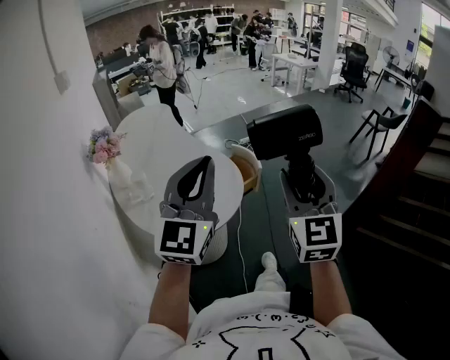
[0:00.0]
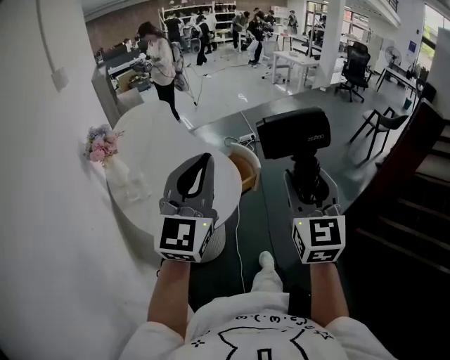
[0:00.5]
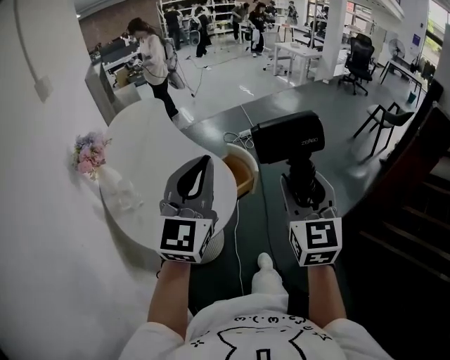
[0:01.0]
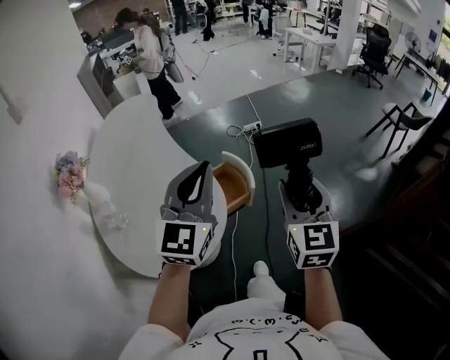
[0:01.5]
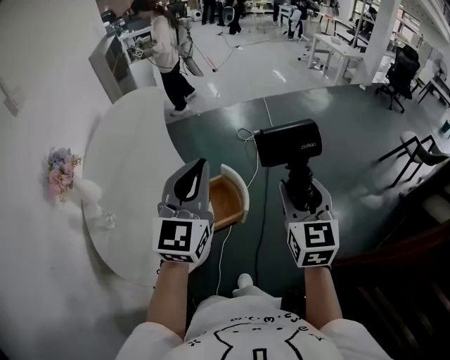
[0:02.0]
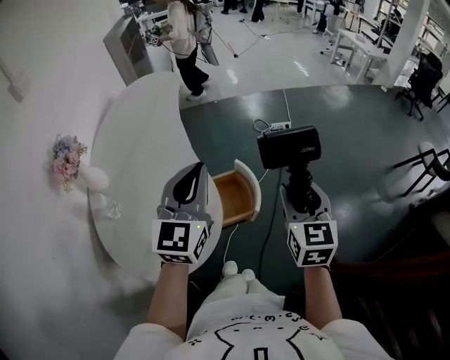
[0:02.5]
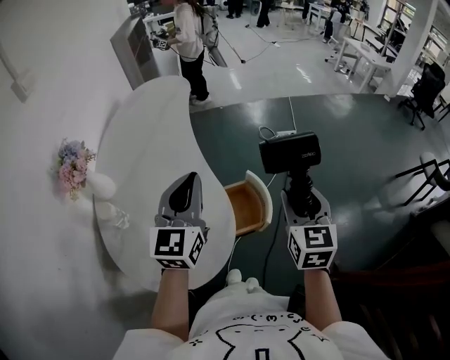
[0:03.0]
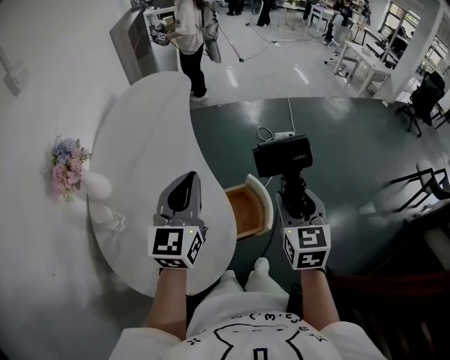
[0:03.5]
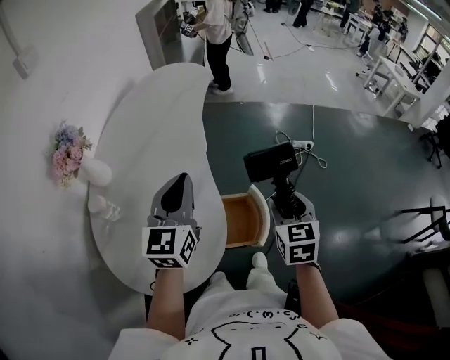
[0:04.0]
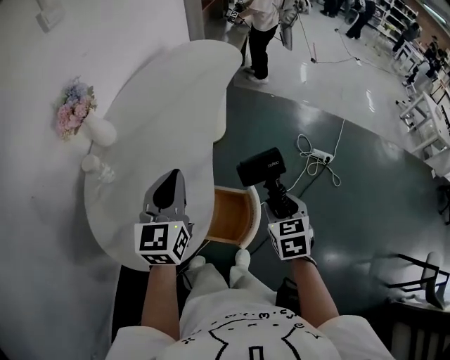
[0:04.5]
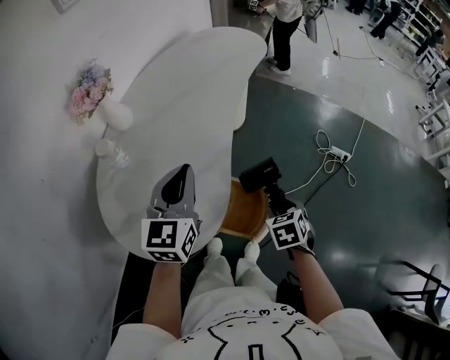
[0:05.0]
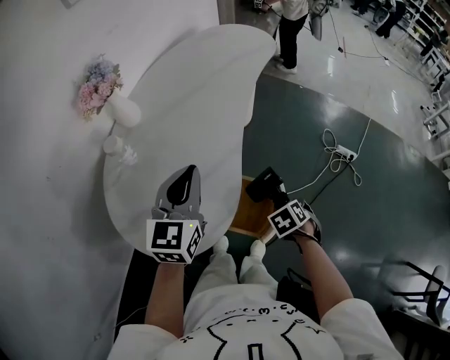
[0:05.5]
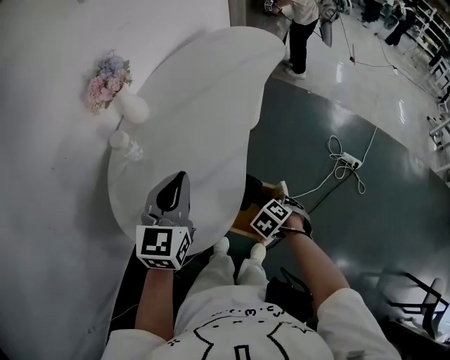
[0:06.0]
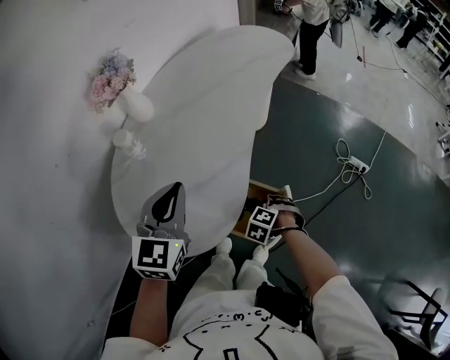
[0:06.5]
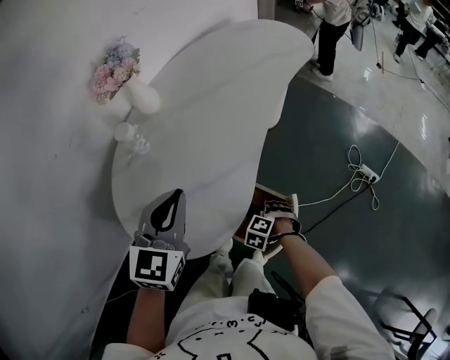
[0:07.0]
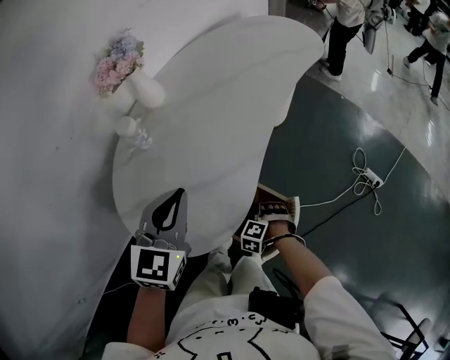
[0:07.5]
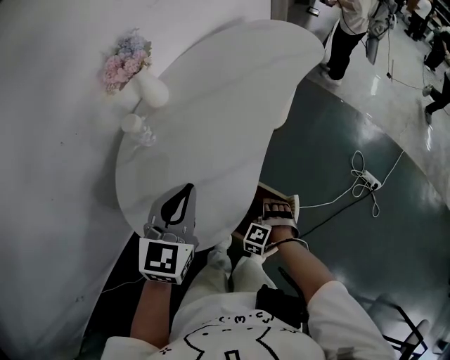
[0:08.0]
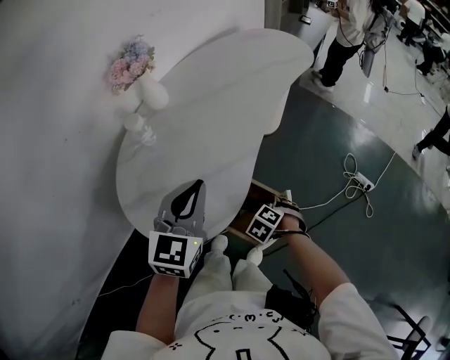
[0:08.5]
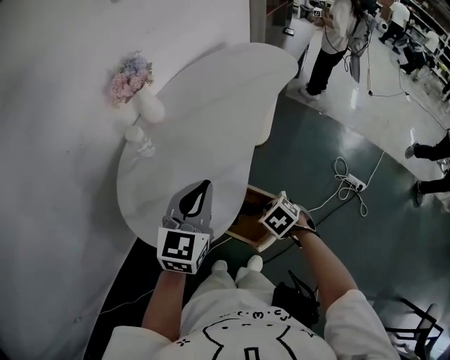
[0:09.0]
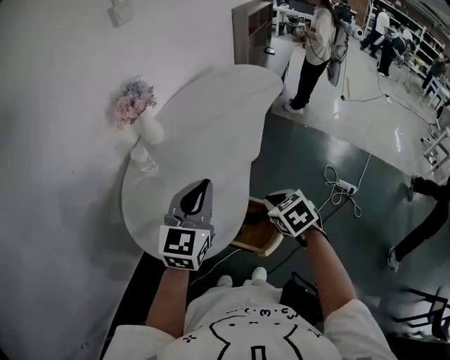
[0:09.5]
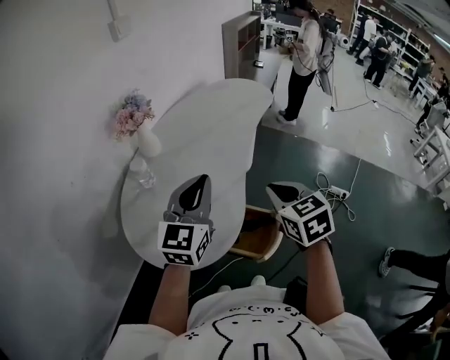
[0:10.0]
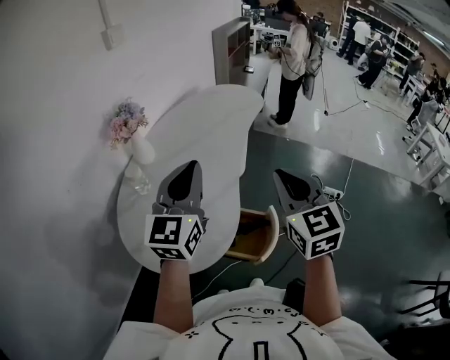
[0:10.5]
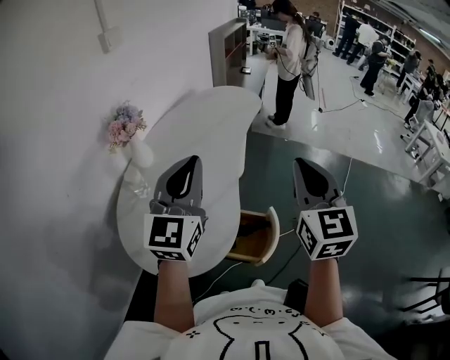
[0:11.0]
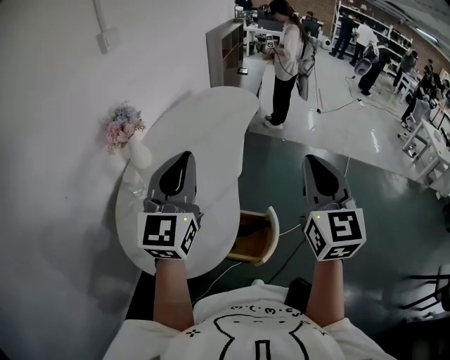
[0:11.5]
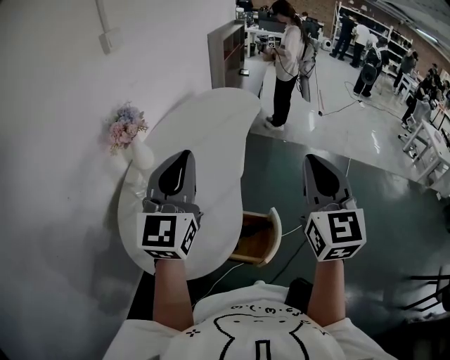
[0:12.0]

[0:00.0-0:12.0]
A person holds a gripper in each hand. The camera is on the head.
0:00.0 to 0:02.0: Both grippers travel together forward, roughly 35 cm. The right gripper swivels about 20 degrees.
0:02.0 to 0:04.0: The right gripper moves forward, downward and to the left, about 25 cm, and changes its angle by roughly 30 degrees, while the left gripper is displaced to the left, forward and downward by roughly 20 cm, and swivels some 30 degrees.
0:04.0 to 0:06.0: The right gripper moves downward, some 25 cm, and tips its fingers downward by roughly 50 degrees. Meanwhile the left gripper moves roughly 10 cm, and turns by roughly 30 degrees.
0:06.0 to 0:08.0: The right gripper goes some 10 cm downward, and twists approximately 40 degrees counterclockwise, seen from behind.
0:08.0 to 0:10.0: The left gripper is displaced upward by roughly 10 cm, and rotates some 20 degrees. Meanwhile the right gripper travels upward by some 40 cm, rotates around the line of its fingers by some 70 degrees, clockwise from behind, and closes.
0:10.0 to 0:12.0: The left gripper heads upward, covering about 10 cm. Meanwhile the right gripper shifts some 15 cm upward and to the right, and points its fingers roughly 30 degrees further upward.

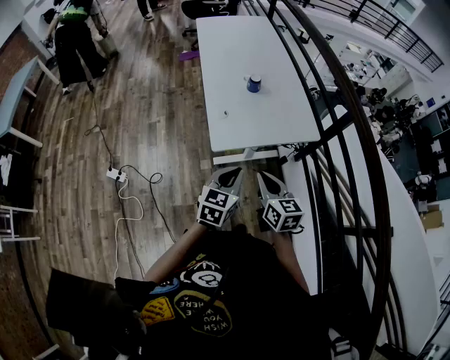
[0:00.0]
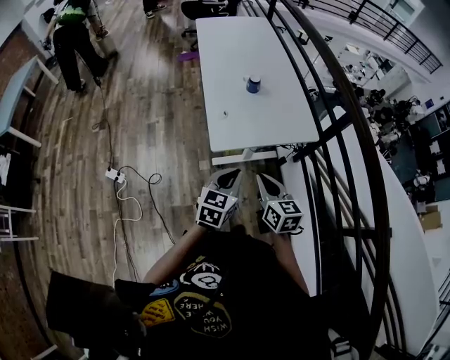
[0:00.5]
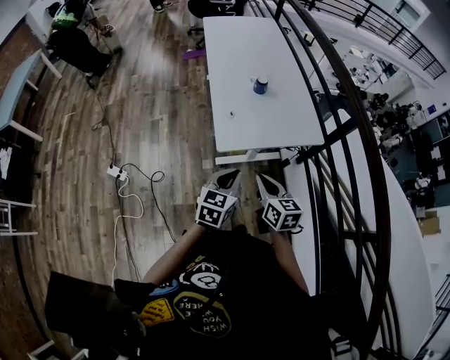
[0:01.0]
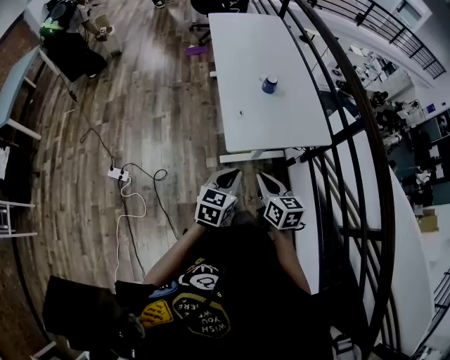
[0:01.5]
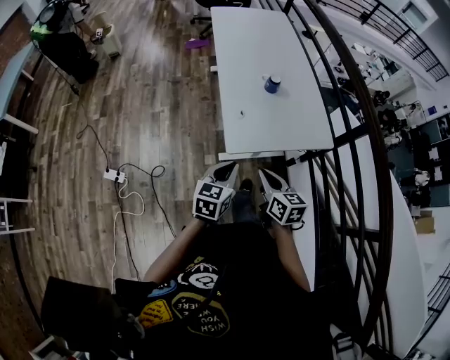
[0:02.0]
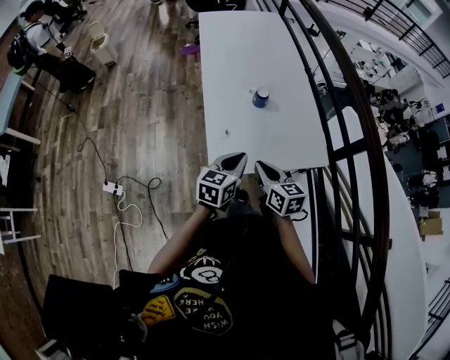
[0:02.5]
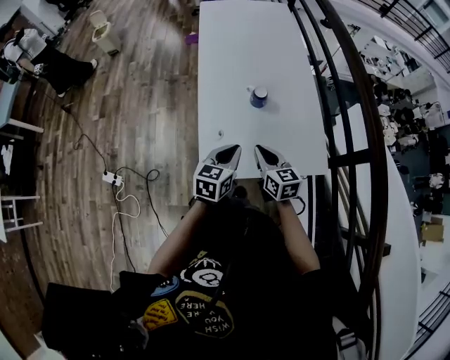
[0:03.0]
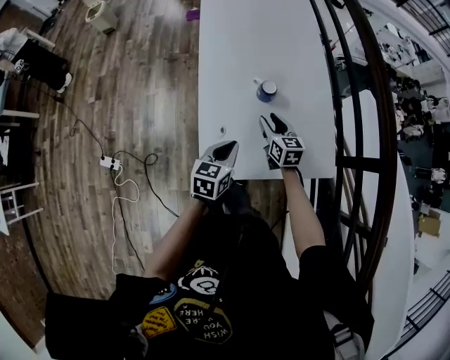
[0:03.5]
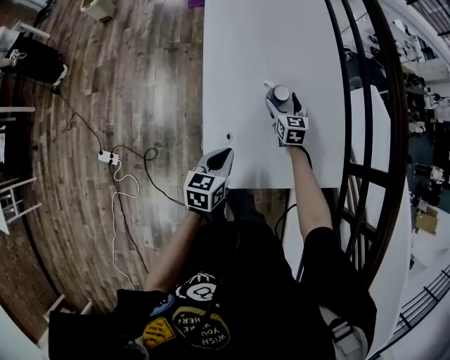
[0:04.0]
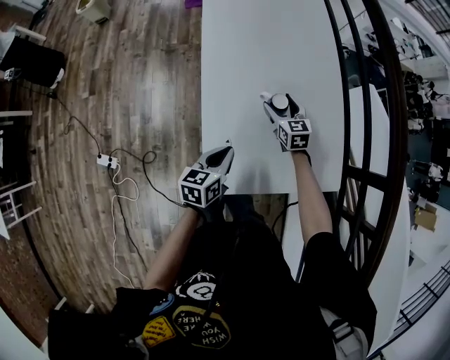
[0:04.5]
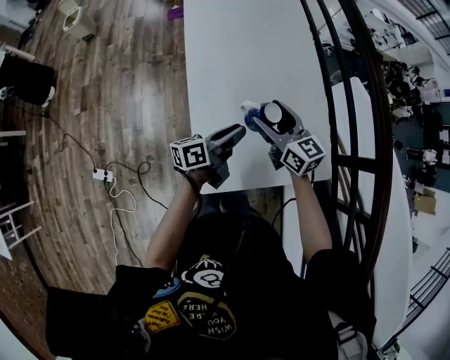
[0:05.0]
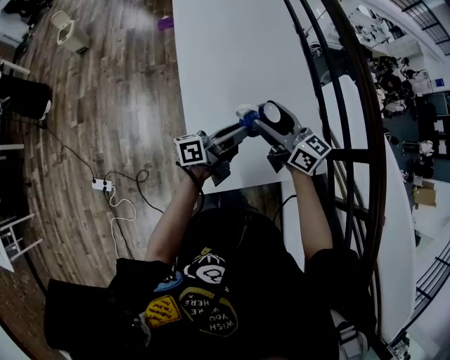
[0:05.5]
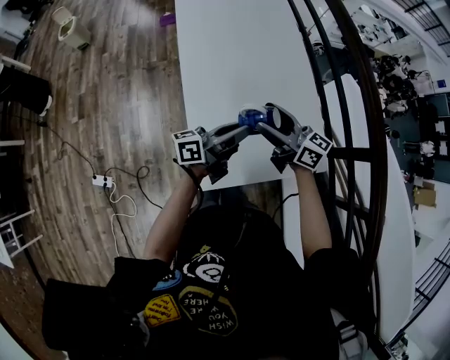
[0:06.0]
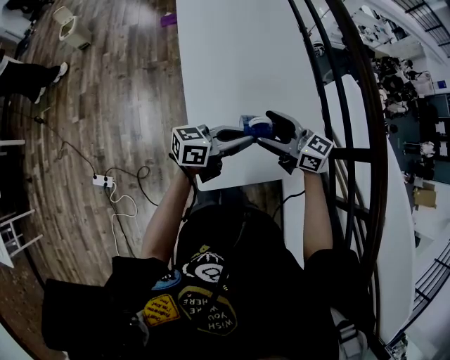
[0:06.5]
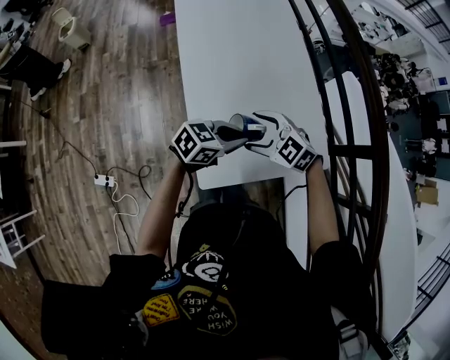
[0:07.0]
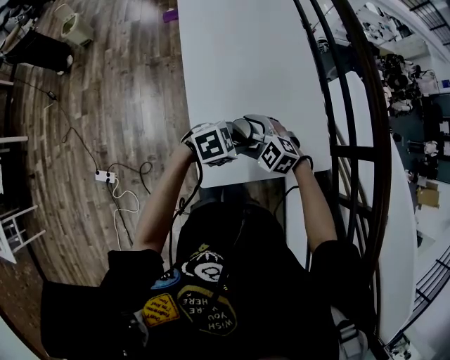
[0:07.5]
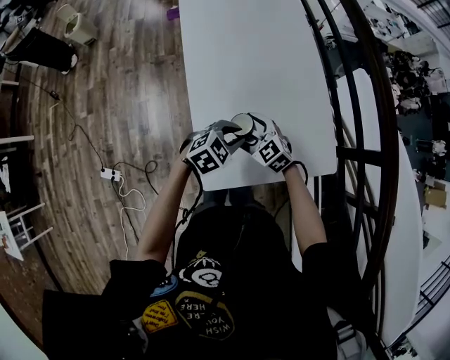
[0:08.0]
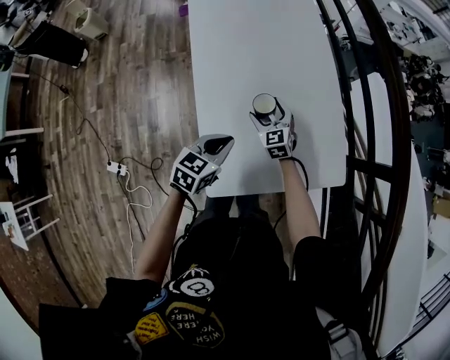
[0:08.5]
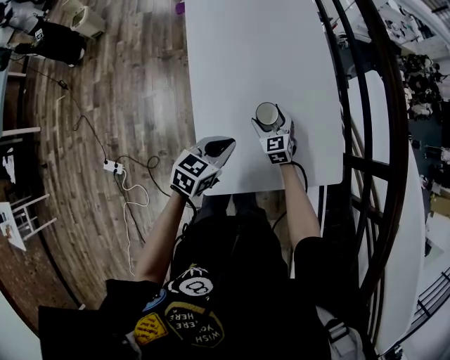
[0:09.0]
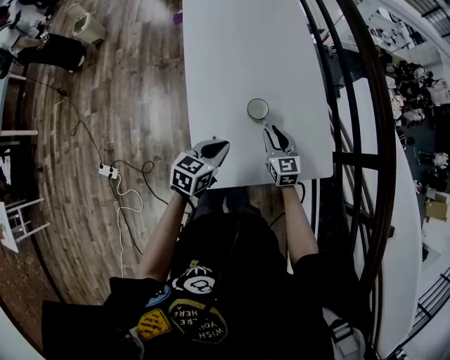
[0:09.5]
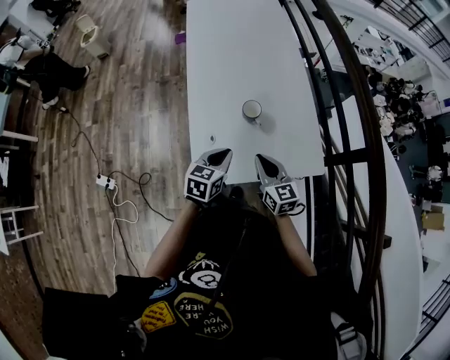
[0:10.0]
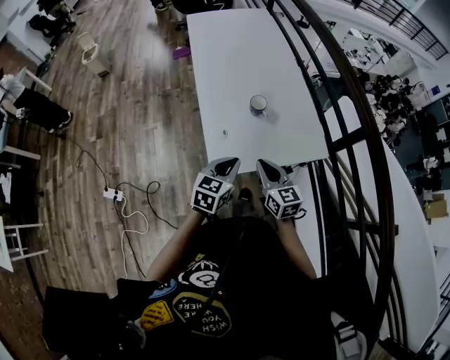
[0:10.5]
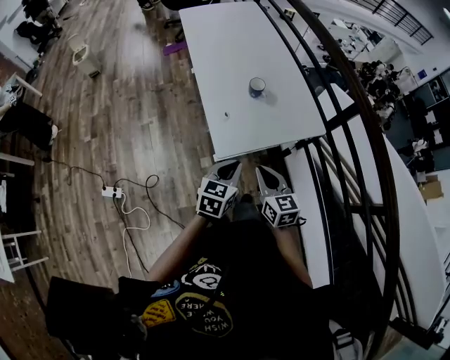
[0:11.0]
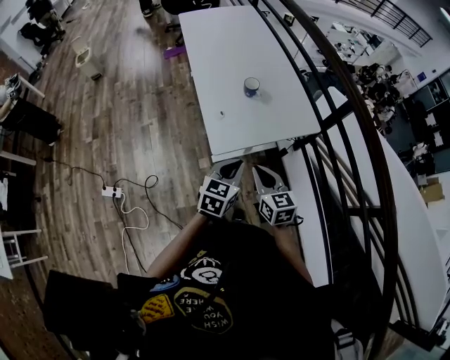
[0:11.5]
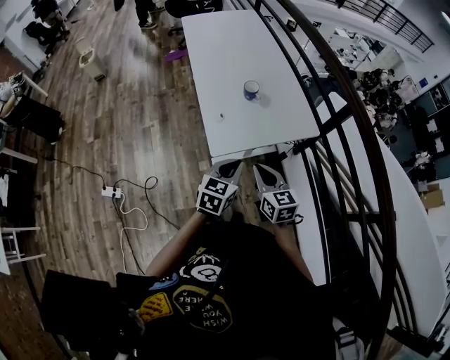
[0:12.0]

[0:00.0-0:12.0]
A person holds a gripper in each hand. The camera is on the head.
0:00.0 to 0:02.0: Both grippers move to the left and forward, about 10 cm.
0:02.0 to 0:04.0: The right gripper moves forward, roughly 50 cm, turns by roughly 20 degrees, and opens. Meanwhile the left gripper travels forward and downward by roughly 25 cm.
0:04.0 to 0:06.0: The right gripper travels upward and backward by approximately 25 cm, and tips its fingers upward by some 30 degrees. Meanwhile the left gripper is displaced upward, to the right and forward by some 15 cm, tilts its fingers about 50 degrees upward, and opens, then closes once more.
0:06.0 to 0:08.0: The left gripper shifts approximately 10 cm downward, and tilts its fingers roughly 60 degrees downward; the right gripper heads downward, covering some 20 cm, and angles its fingers downward, by roughly 40 degrees.
0:08.0 to 0:10.0: The left gripper goes roughly 10 cm backward, and turns by approximately 50 degrees, while the right gripper moves to the right, backward and upward, approximately 15 cm, changes its angle by some 40 degrees, and closes its fingers.
0:10.0 to 0:12.0: Both grippers move backward, approximately 20 cm.

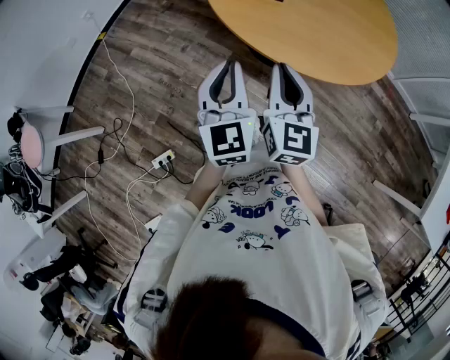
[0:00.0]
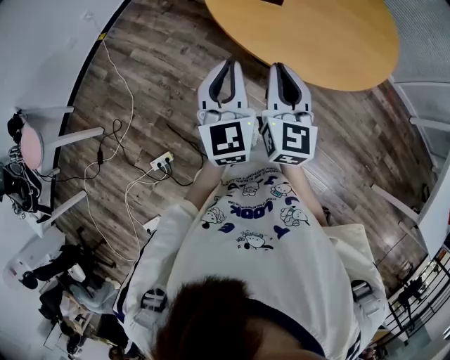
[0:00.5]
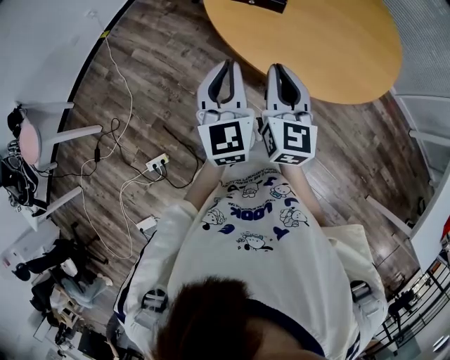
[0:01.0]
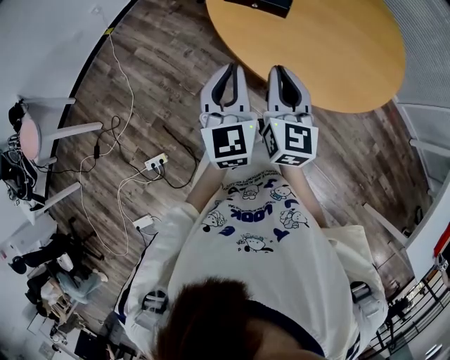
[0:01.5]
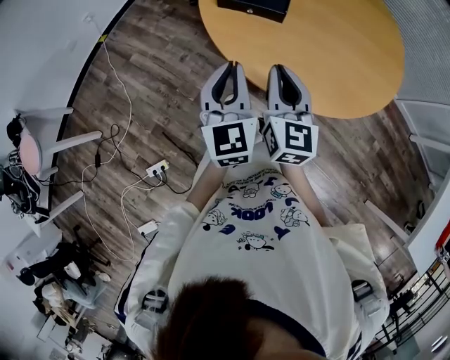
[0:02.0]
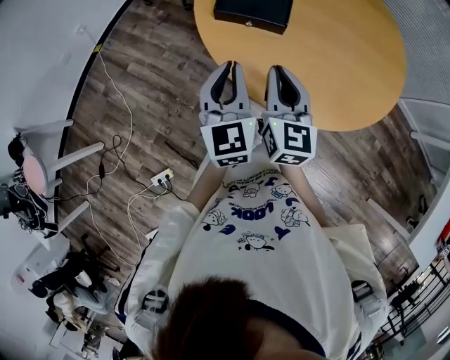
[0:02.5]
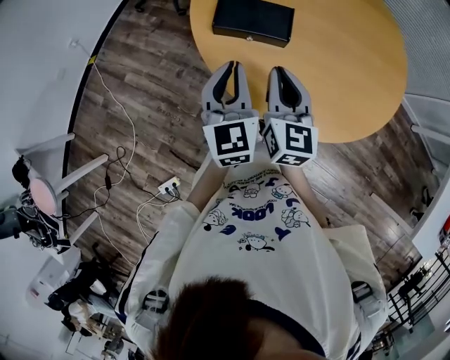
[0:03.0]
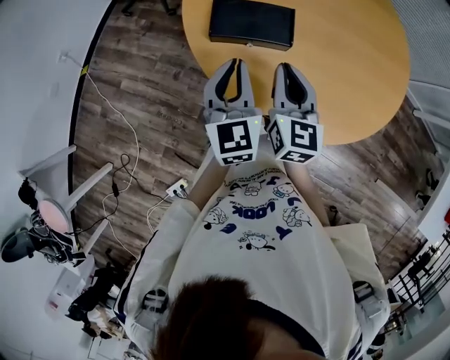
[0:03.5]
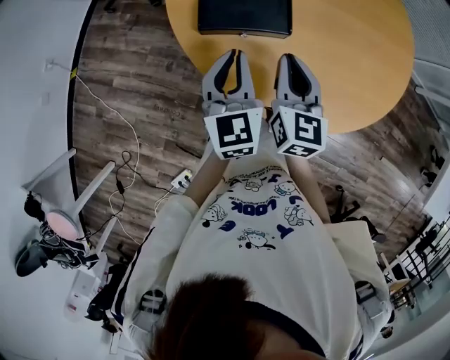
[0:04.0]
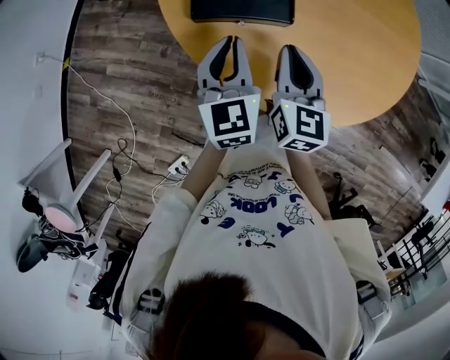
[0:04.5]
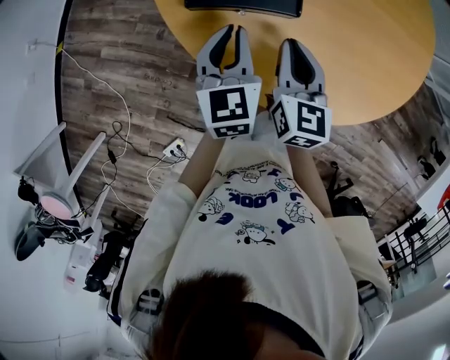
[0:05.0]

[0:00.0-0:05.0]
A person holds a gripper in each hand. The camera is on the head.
0:00.0 to 0:02.5: The two grippers go about 20 cm forward.
0:02.5 to 0:05.0: The grippers both shift forward and downward by roughly 20 cm. The left gripper changes its angle by approximately 20 degrees. The right gripper swivels some 20 degrees.
